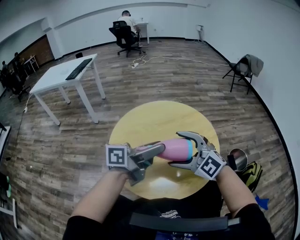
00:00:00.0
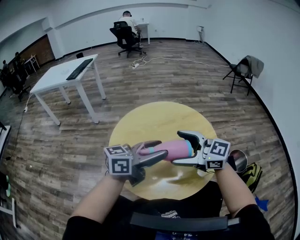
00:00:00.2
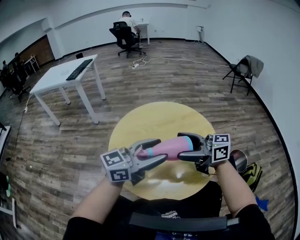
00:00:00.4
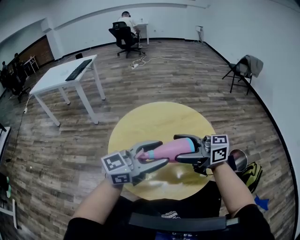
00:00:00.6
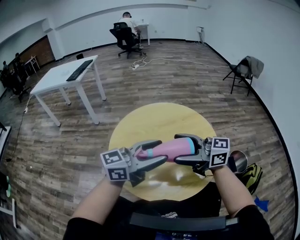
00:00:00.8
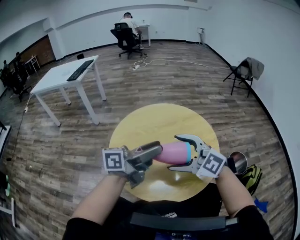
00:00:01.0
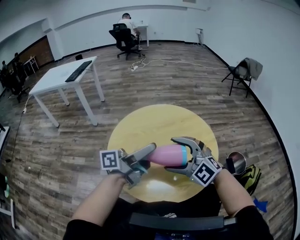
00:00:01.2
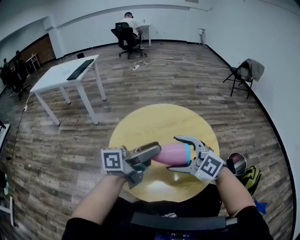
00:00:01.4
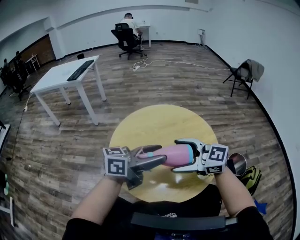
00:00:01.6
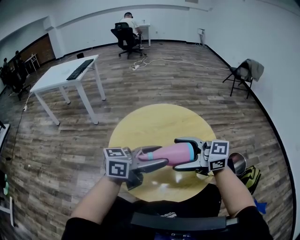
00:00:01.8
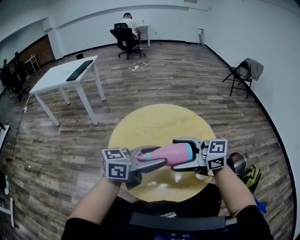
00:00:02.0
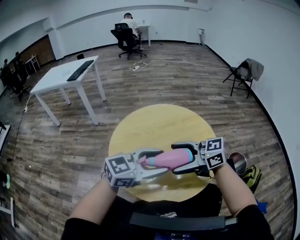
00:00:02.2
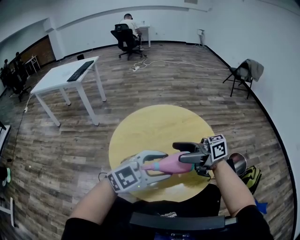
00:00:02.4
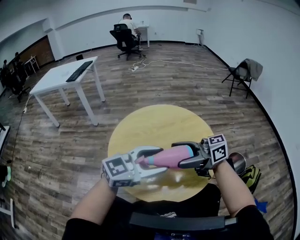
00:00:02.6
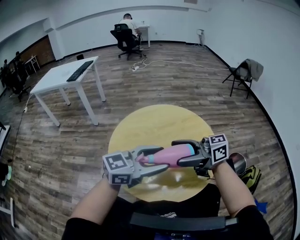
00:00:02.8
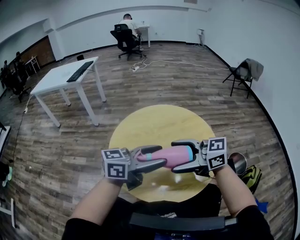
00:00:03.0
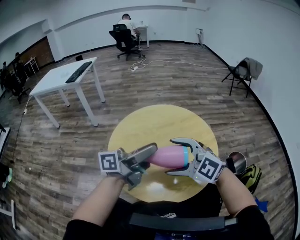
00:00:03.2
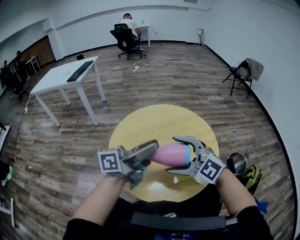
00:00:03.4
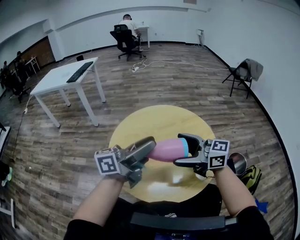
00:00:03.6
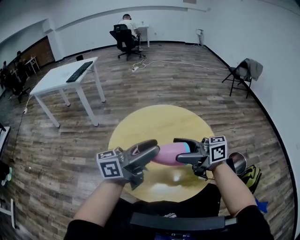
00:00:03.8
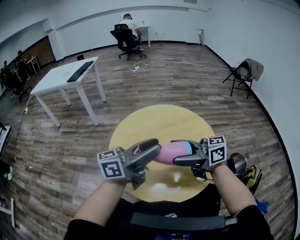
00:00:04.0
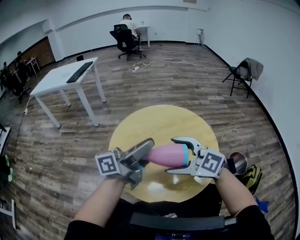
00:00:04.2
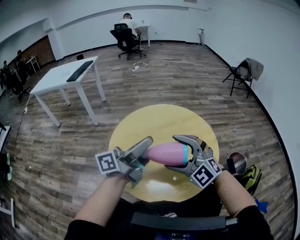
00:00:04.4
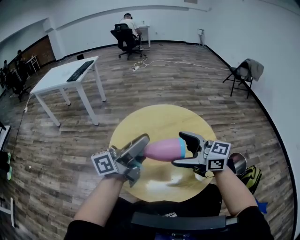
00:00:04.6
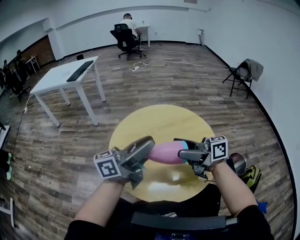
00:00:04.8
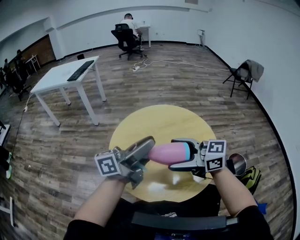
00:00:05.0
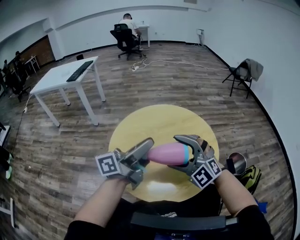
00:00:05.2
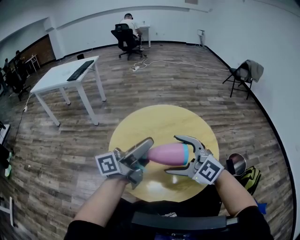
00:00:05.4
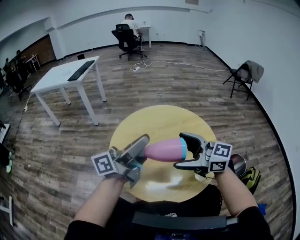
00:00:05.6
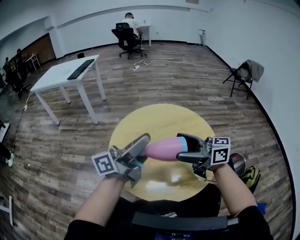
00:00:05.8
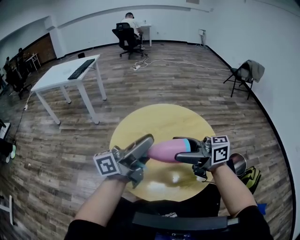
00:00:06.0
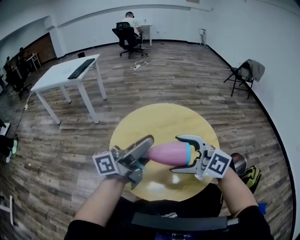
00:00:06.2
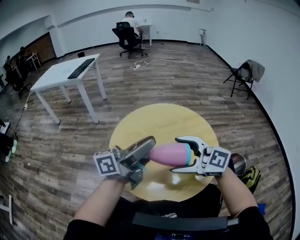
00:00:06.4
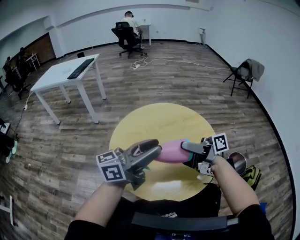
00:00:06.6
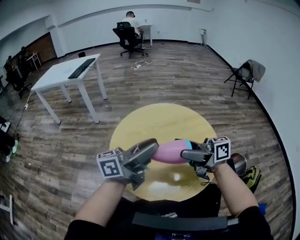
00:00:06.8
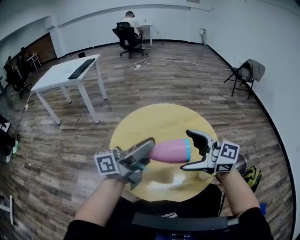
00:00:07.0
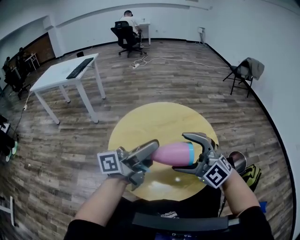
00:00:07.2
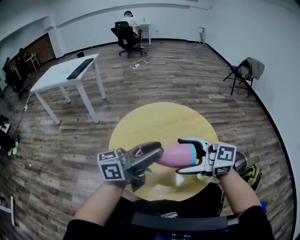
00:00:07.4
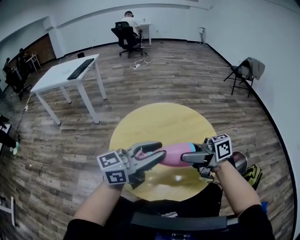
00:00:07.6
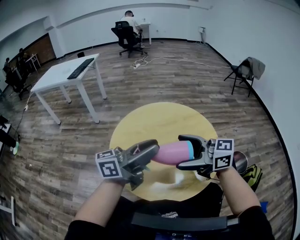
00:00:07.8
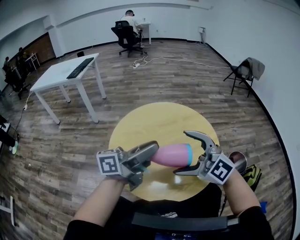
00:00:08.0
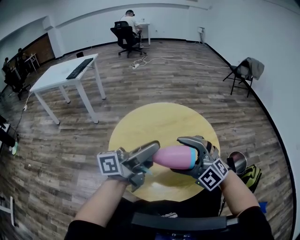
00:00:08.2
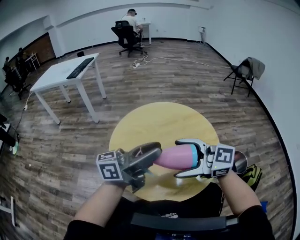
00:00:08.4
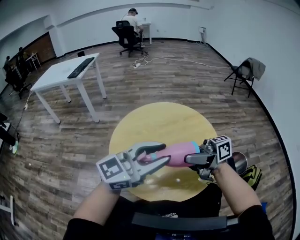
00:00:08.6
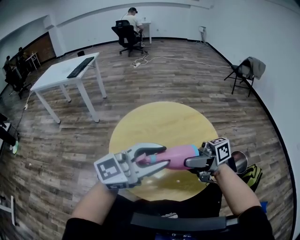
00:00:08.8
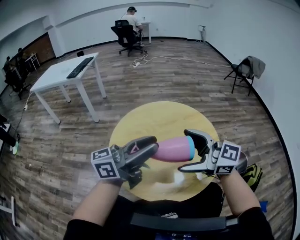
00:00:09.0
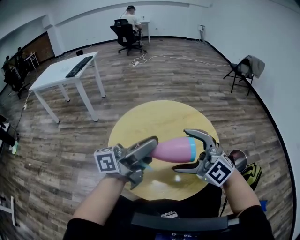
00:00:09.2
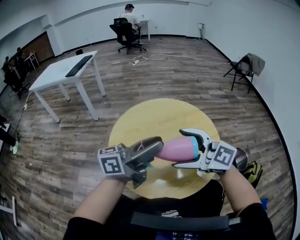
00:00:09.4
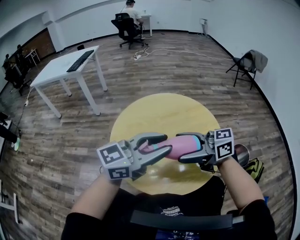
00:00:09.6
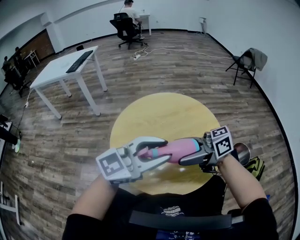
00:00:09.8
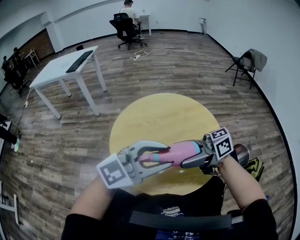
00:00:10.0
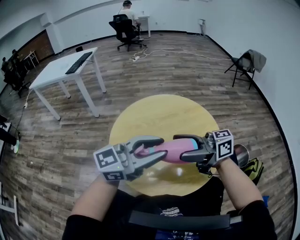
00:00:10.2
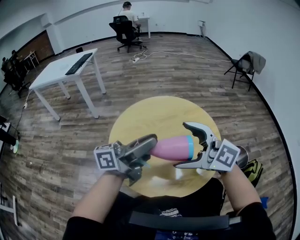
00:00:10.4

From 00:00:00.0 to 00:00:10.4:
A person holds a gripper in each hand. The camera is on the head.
From 00:00:01.4 to 00:00:03.0: The right gripper changes its angle by some 40 degrees. The left gripper swivels some 20 degrees.
From 00:00:03.0 to 00:00:04.4: The left gripper shifts by approximately 5 cm, and swivels about 30 degrees, while the right gripper rotates around the line of its fingers by about 60 degrees, counterclockwise from behind.
From 00:00:04.4 to 00:00:06.0: The right gripper moves upward, some 5 cm, and rolls clockwise, seen from behind, by some 80 degrees.
From 00:00:06.0 to 00:00:07.4: The right gripper rotates about 30 degrees.

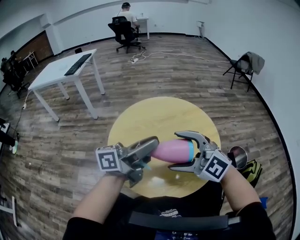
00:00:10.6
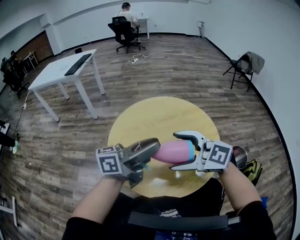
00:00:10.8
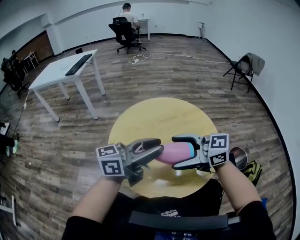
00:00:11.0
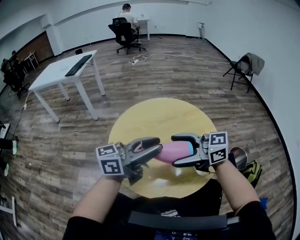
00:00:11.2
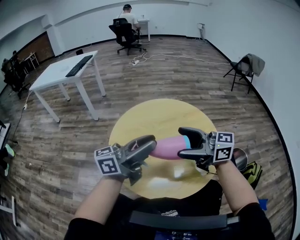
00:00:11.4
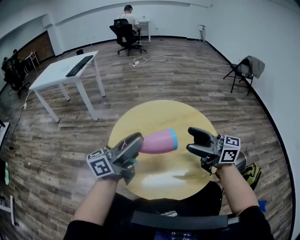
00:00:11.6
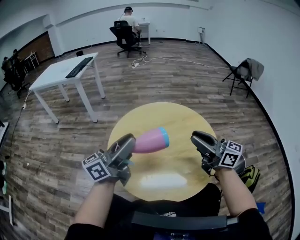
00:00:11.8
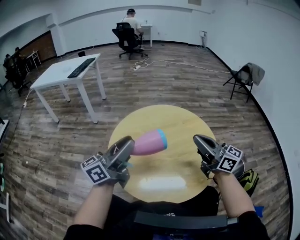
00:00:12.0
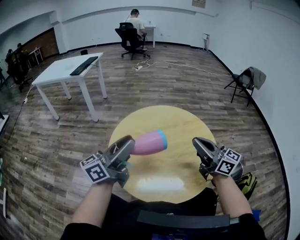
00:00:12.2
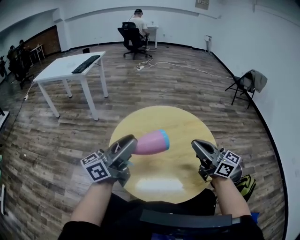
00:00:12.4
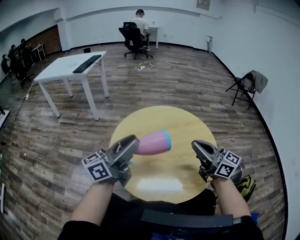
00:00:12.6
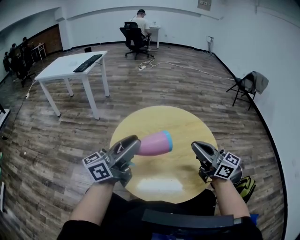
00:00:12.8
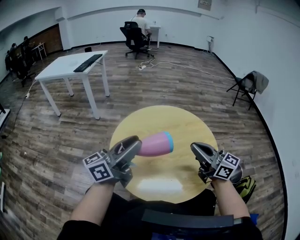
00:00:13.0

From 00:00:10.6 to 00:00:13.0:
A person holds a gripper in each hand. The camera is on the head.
From 00:00:10.6 to 00:00:11.8: The left gripper shifts by roughly 10 cm, and changes its angle by roughly 20 degrees. Meanwhile the right gripper moves approximately 15 cm, rolls clockwise, seen from behind, by approximately 50 degrees, and closes.
From 00:00:11.8 to 00:00:13.0: The grippers stay close to where they were, moving slightly.

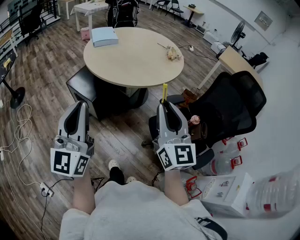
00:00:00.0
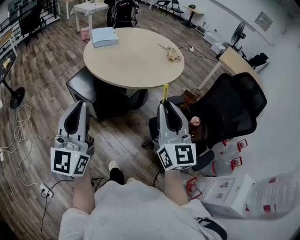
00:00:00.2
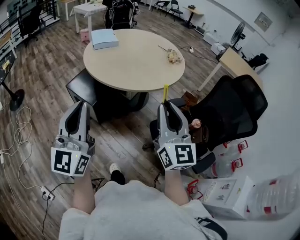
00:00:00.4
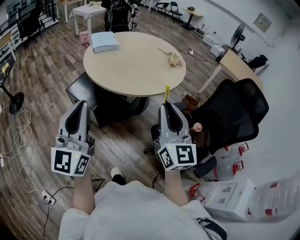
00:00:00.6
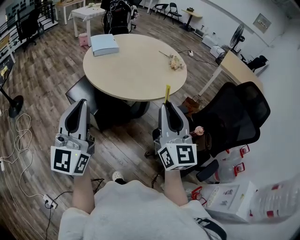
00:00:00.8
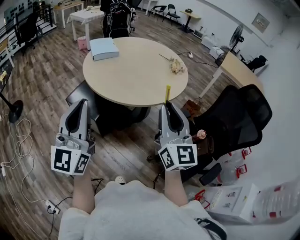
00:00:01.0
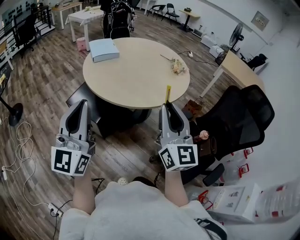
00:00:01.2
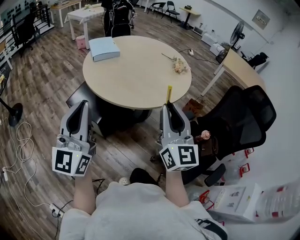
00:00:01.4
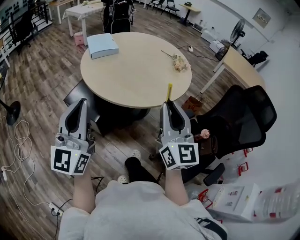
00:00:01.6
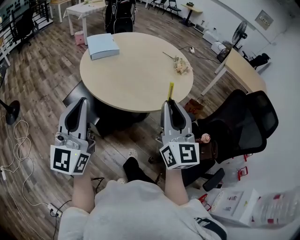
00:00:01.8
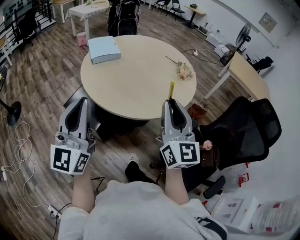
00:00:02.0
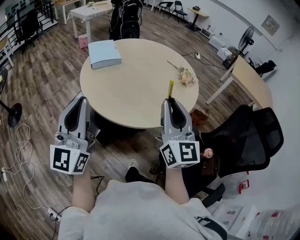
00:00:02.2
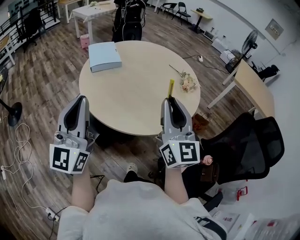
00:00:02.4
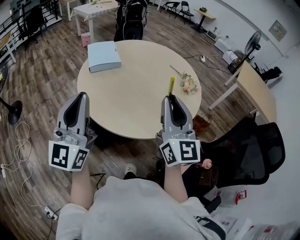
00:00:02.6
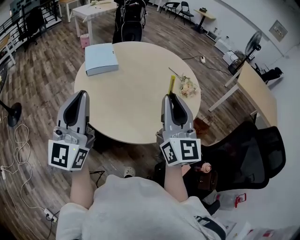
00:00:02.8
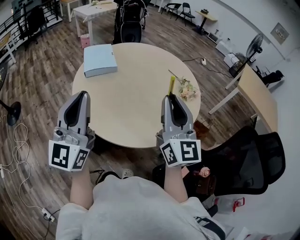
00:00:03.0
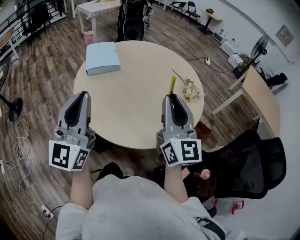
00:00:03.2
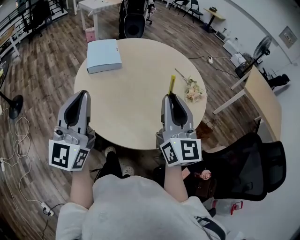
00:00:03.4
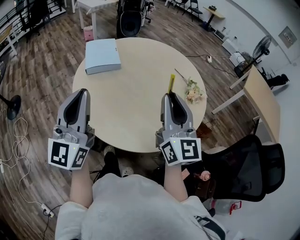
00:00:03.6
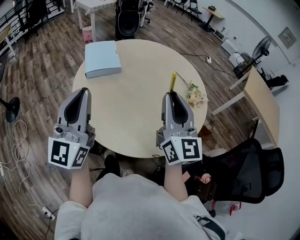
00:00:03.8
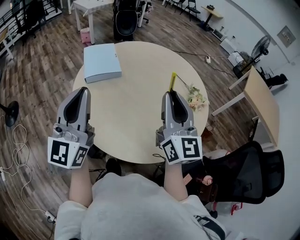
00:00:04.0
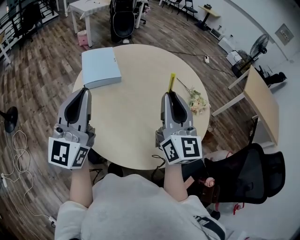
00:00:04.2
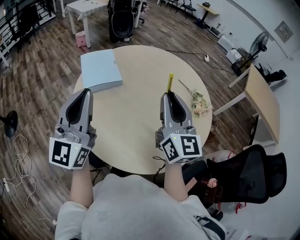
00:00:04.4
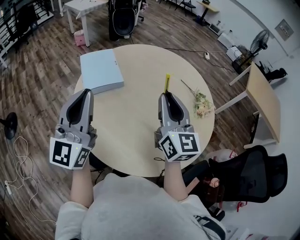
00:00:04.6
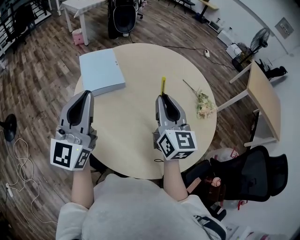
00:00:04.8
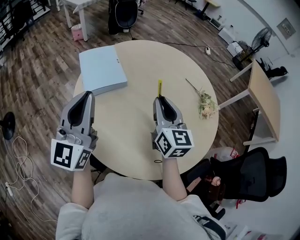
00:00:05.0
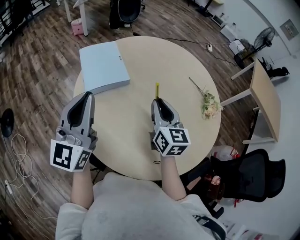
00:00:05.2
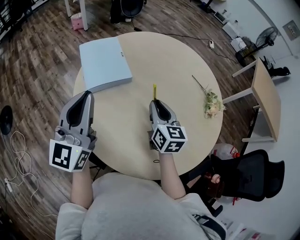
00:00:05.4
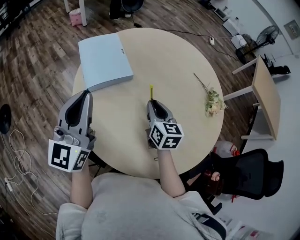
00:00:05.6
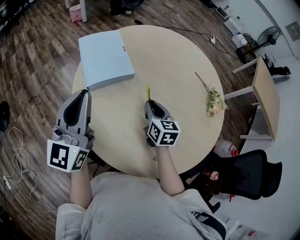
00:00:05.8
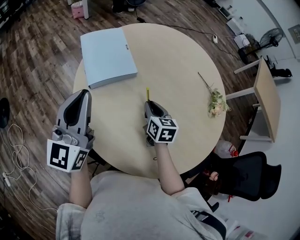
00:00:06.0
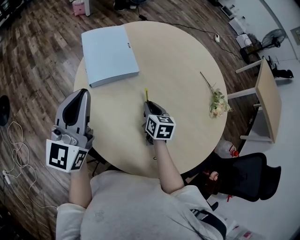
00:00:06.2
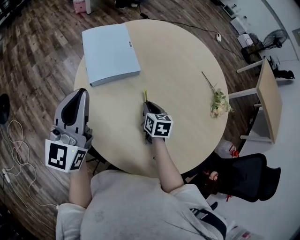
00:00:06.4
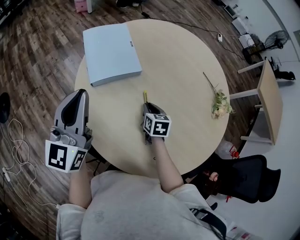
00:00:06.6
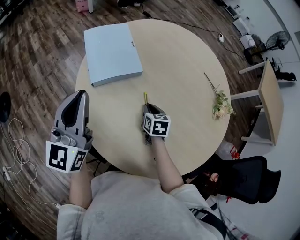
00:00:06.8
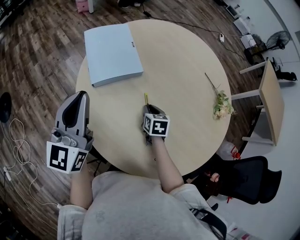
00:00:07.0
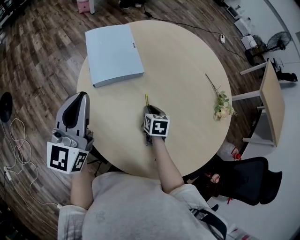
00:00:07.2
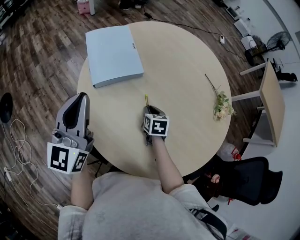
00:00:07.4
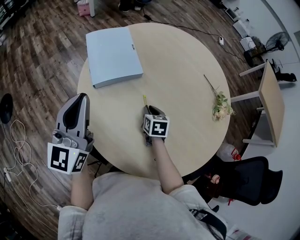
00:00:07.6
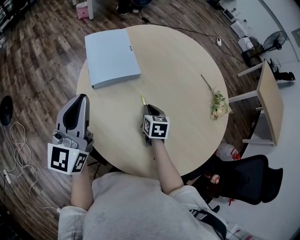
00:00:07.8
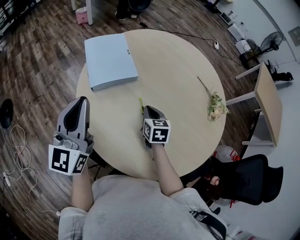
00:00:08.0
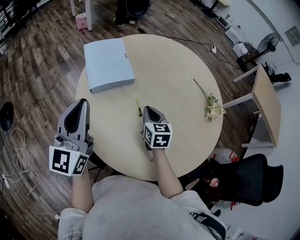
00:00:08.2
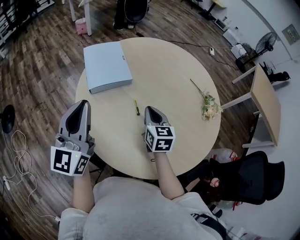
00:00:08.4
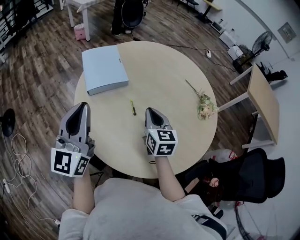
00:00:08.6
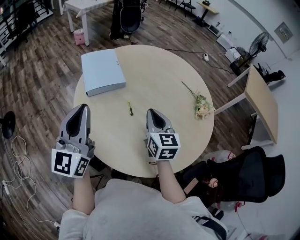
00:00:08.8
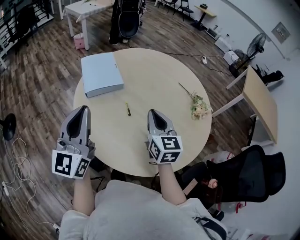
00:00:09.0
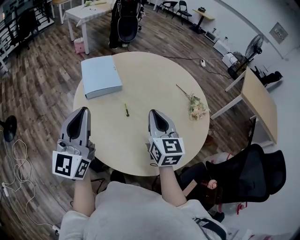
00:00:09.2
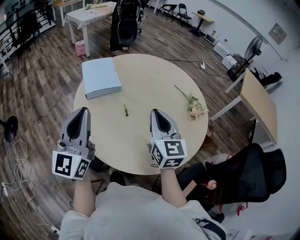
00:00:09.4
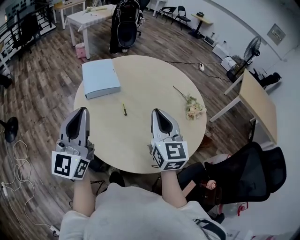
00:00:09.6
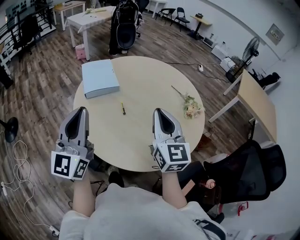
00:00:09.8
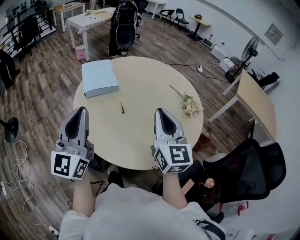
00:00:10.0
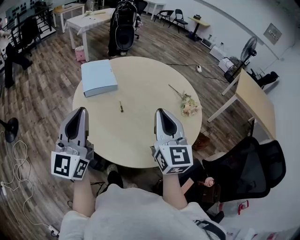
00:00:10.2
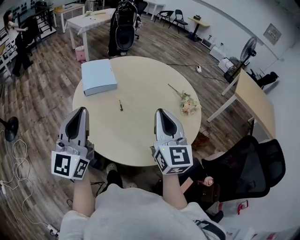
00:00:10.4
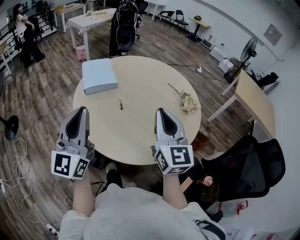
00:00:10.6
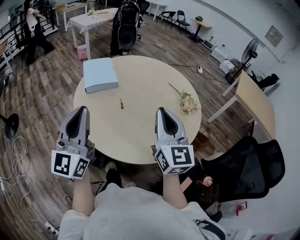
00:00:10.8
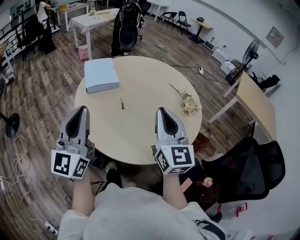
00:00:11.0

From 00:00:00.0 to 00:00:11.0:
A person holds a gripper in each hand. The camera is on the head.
From 00:00:00.0 to 00:00:01.6: The two grippers go approximately 20 cm forward and to the left.
From 00:00:01.6 to 00:00:03.2: Both grippers travel together forward, roughly 30 cm.
From 00:00:03.2 to 00:00:04.8: Both grippers travel together forward and to the left, about 25 cm.
From 00:00:04.8 to 00:00:06.2: The right gripper is displaced downward by about 30 cm, and angles its fingers downward, by approximately 40 degrees, while the left gripper moves to the left, downward and forward, about 15 cm.
From 00:00:06.2 to 00:00:07.8: The grippers stay close to where they were, moving slightly.
From 00:00:07.8 to 00:00:09.4: The right gripper heads upward and backward, covering about 35 cm, and points its fingers approximately 40 degrees further upward; the left gripper moves backward, to the right and upward, approximately 25 cm.
From 00:00:09.4 to 00:00:11.0: The right gripper moves backward and upward, approximately 15 cm. Meanwhile the left gripper shifts approximately 10 cm backward.
